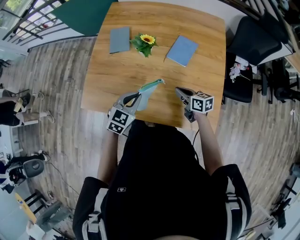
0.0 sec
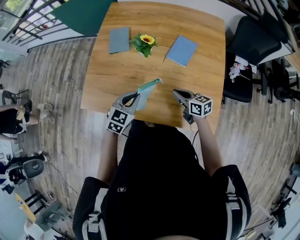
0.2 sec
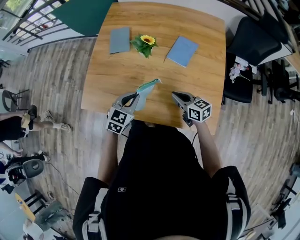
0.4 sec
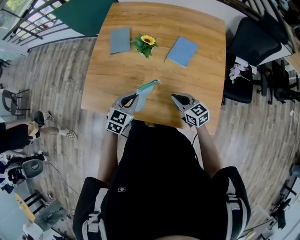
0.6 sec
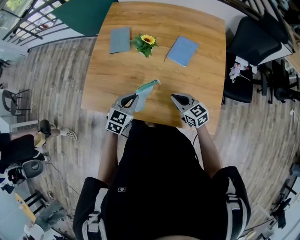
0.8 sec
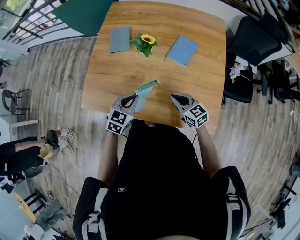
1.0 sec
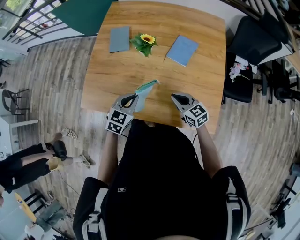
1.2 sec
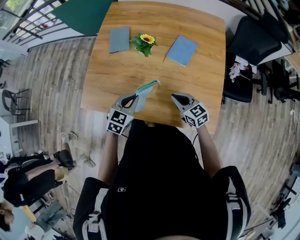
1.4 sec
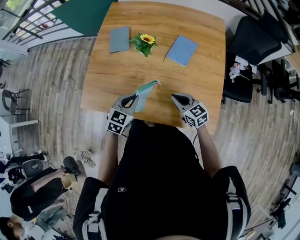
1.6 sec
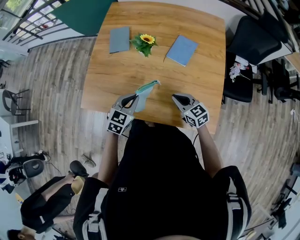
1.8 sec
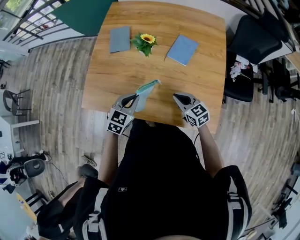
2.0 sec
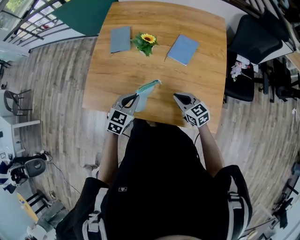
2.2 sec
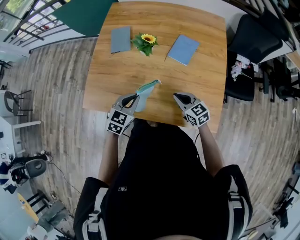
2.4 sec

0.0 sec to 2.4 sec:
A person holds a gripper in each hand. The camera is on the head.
0.0 sec to 1.2 sec: The right gripper changes place by about 5 cm, and changes its angle by approximately 30 degrees.
1.2 sec to 2.4 sec: Neither gripper changes place.

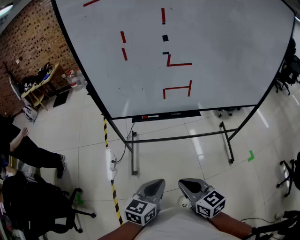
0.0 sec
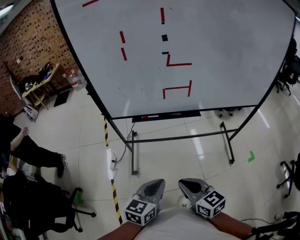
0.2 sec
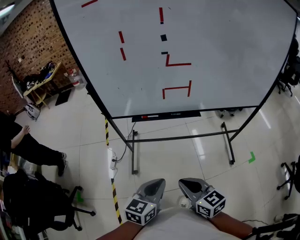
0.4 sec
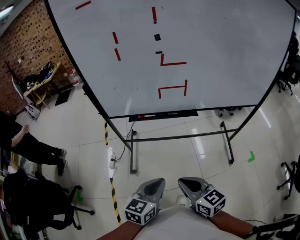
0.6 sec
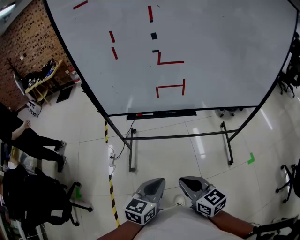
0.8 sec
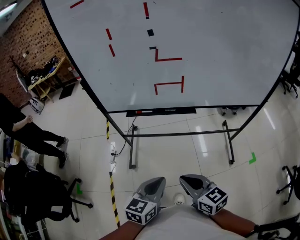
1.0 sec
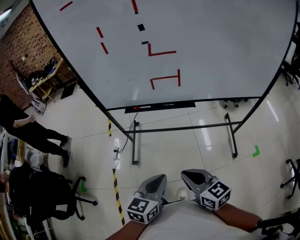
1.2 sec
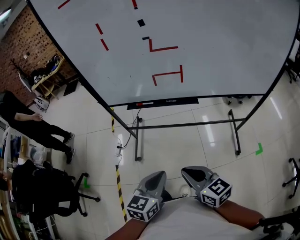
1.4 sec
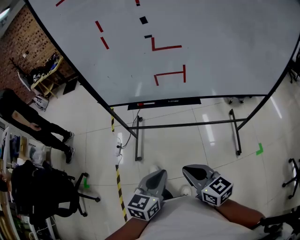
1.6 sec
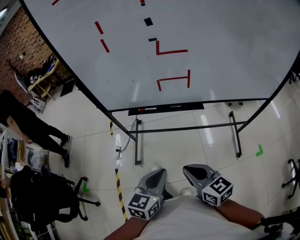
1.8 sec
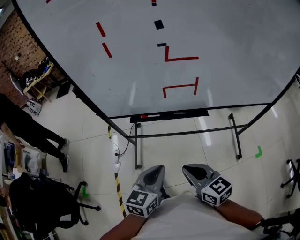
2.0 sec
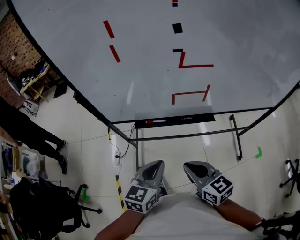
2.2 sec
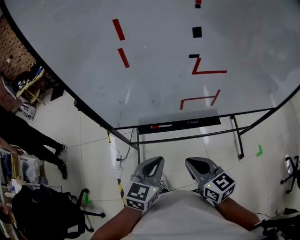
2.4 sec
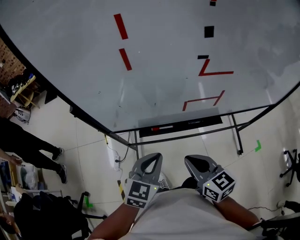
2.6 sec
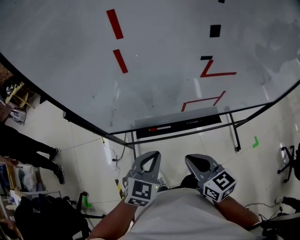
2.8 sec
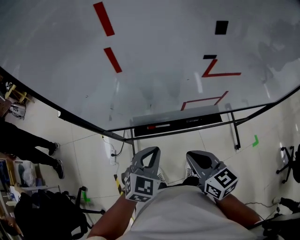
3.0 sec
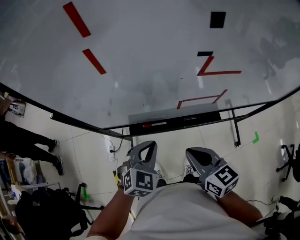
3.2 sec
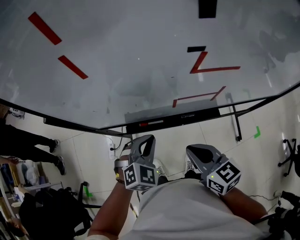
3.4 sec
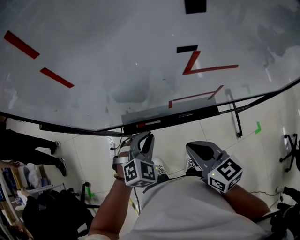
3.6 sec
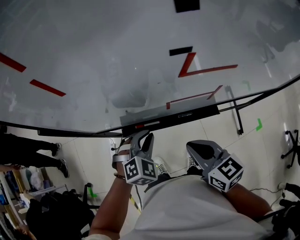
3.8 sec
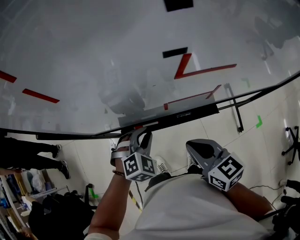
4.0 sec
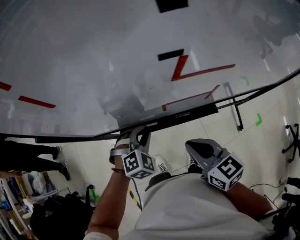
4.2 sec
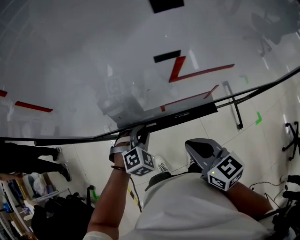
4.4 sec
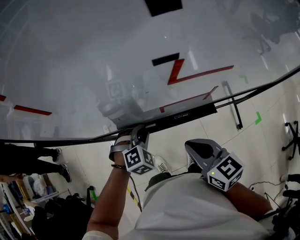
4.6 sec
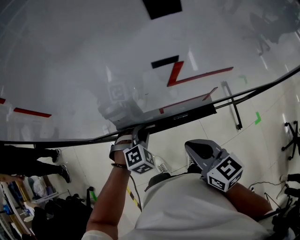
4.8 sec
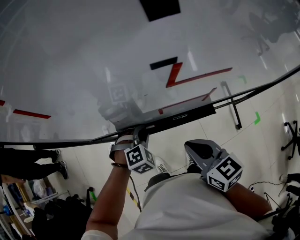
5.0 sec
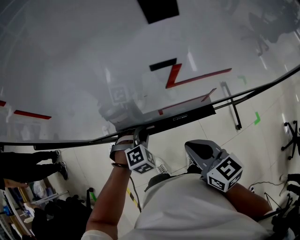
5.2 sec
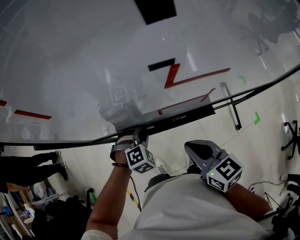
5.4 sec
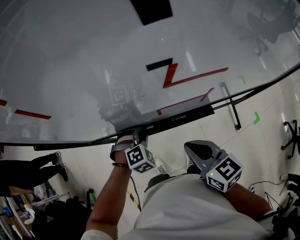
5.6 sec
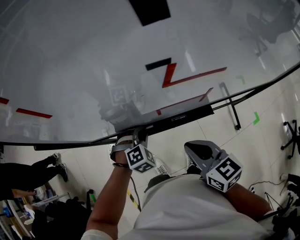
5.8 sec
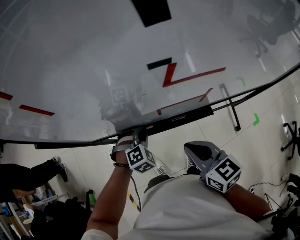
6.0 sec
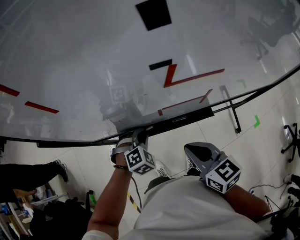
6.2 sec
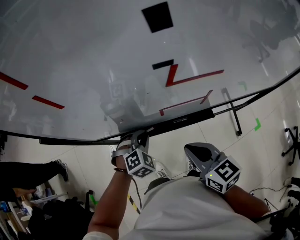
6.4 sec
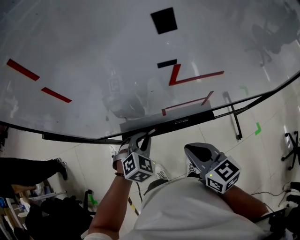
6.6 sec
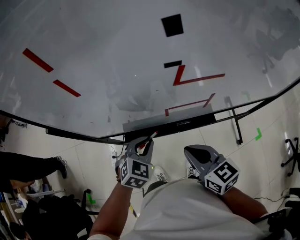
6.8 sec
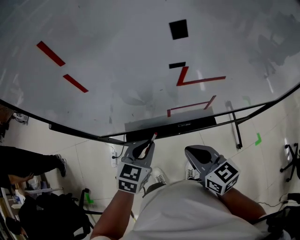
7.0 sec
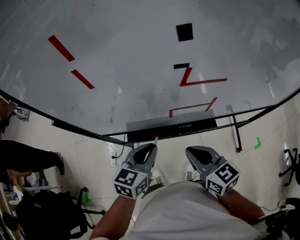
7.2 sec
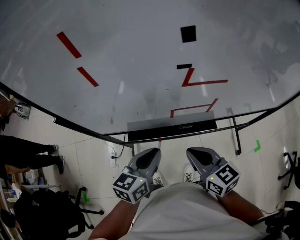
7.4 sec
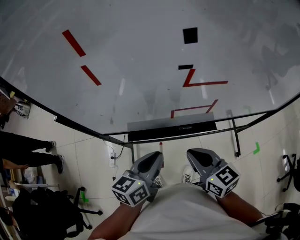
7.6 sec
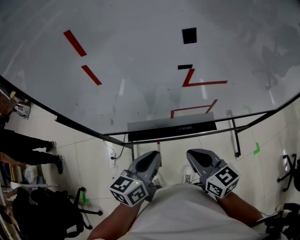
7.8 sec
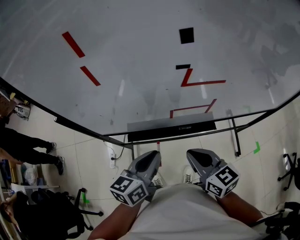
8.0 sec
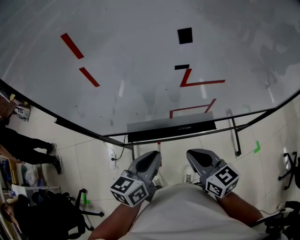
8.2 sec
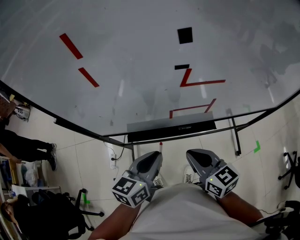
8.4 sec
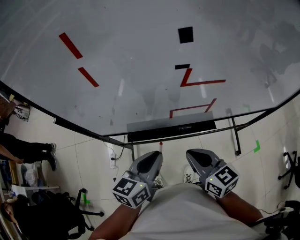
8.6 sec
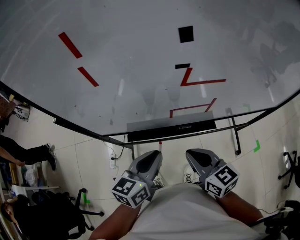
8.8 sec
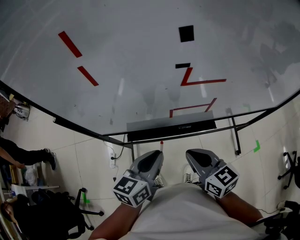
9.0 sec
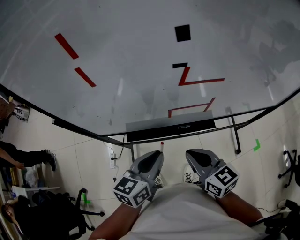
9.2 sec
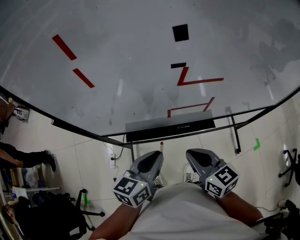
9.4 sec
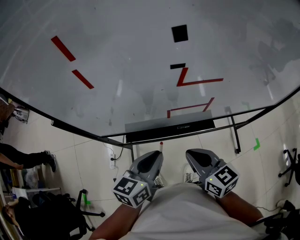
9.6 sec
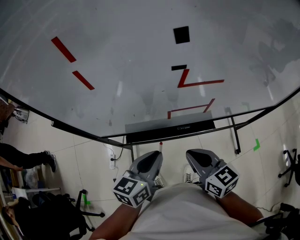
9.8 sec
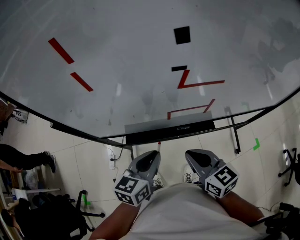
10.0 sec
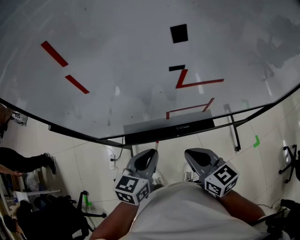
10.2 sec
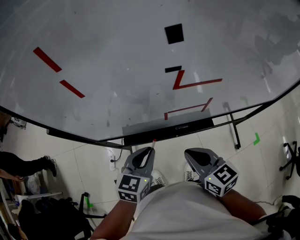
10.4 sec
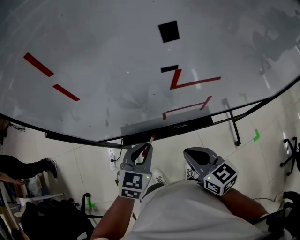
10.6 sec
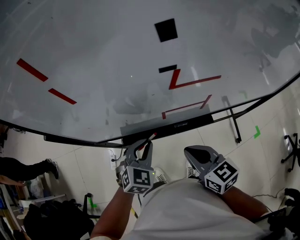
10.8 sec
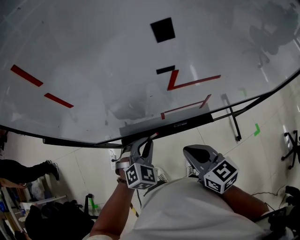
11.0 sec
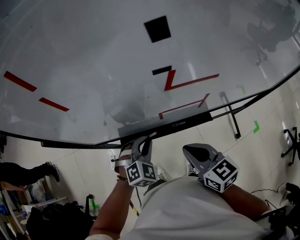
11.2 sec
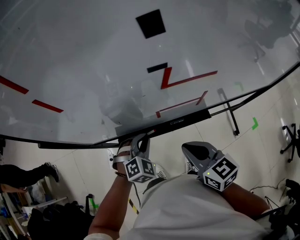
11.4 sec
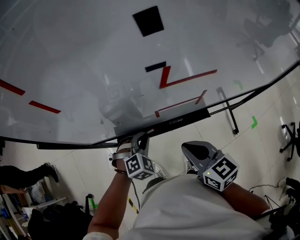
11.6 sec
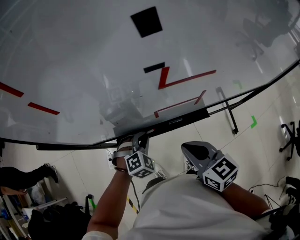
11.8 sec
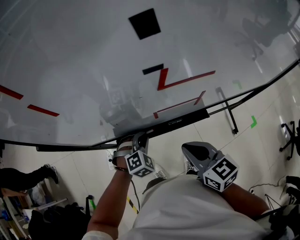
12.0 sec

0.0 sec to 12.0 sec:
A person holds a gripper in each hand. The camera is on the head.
0.0 sec to 1.6 sec: Both grippers travel together to the right, approximately 10 cm.
1.6 sec to 3.0 sec: Both grippers move forward, approximately 30 cm. The left gripper changes its angle by some 40 degrees.
3.0 sec to 4.4 sec: The left gripper goes roughly 15 cm downward and forward, and rotates roughly 40 degrees; the right gripper travels to the right by about 5 cm.
4.4 sec to 6.0 sec: There are only small adjustments of the grippers.
6.0 sec to 7.6 sec: The left gripper goes roughly 20 cm upward and backward, and rotates around the line of its fingers by approximately 80 degrees, counterclockwise from behind.
7.6 sec to 9.0 sec: There are only small adjustments of the grippers.
9.0 sec to 10.4 sec: The left gripper changes place by about 5 cm, and swivels approximately 20 degrees.
10.4 sec to 12.0 sec: The left gripper travels downward and forward by approximately 15 cm, and rolls clockwise, seen from behind, by some 50 degrees.

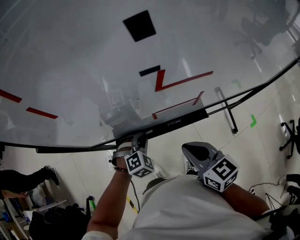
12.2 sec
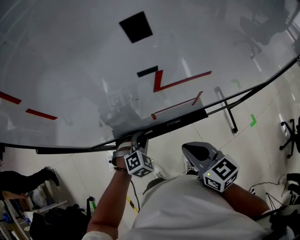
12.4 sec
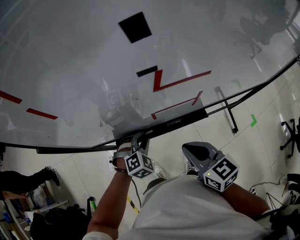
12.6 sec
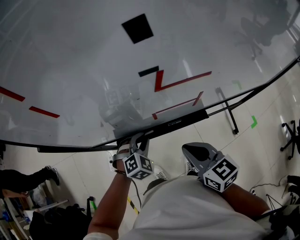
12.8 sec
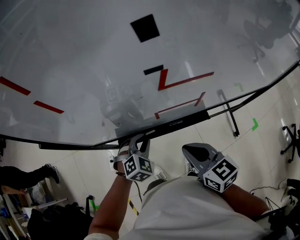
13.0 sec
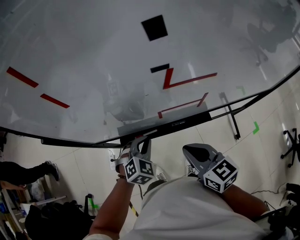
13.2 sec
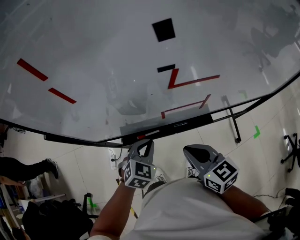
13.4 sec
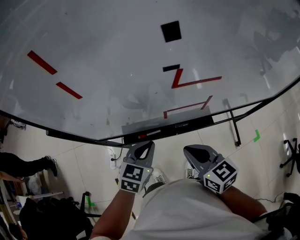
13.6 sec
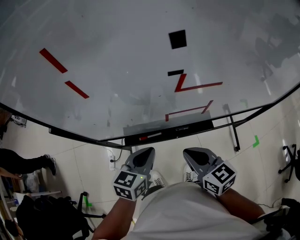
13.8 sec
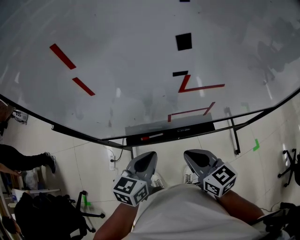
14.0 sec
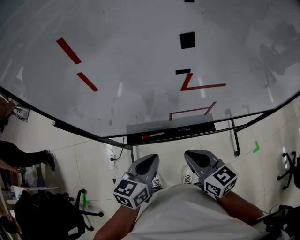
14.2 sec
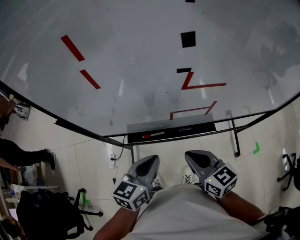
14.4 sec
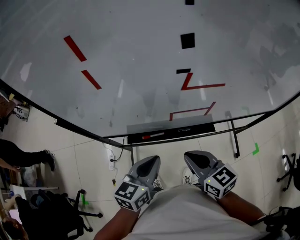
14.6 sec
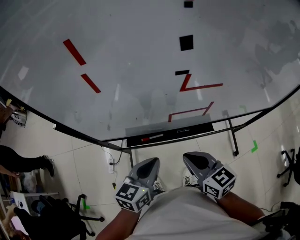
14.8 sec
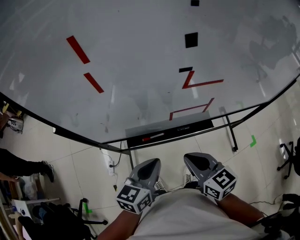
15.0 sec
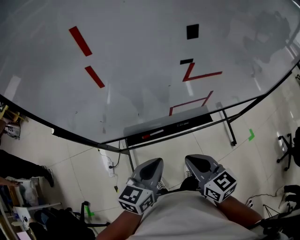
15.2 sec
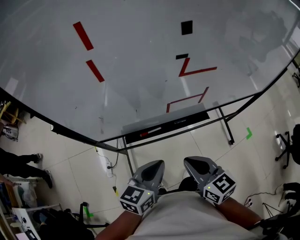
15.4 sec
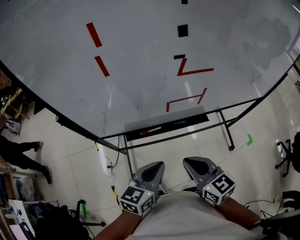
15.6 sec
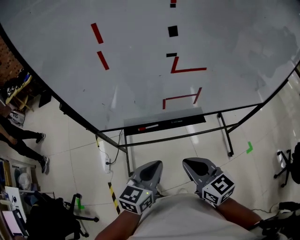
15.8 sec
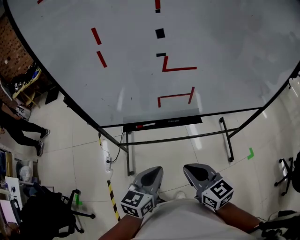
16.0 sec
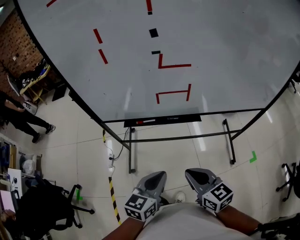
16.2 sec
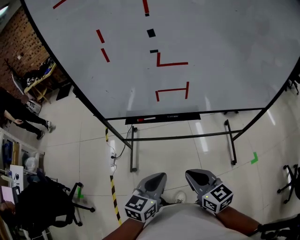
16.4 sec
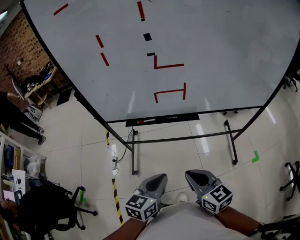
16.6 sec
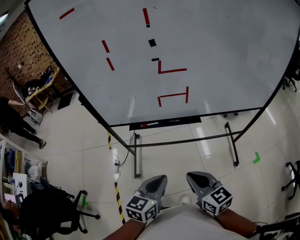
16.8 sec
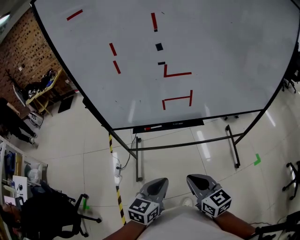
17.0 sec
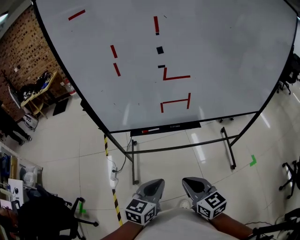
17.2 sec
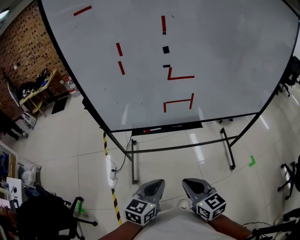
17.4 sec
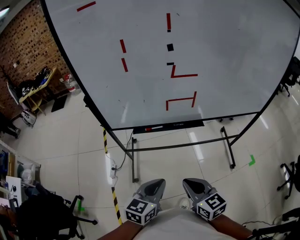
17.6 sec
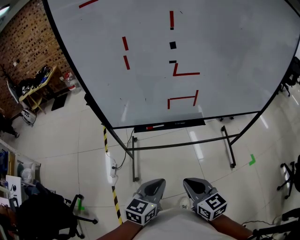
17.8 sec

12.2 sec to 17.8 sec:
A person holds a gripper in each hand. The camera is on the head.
12.2 sec to 13.6 sec: The left gripper moves upward, roughly 10 cm, and twists about 50 degrees counterclockwise, seen from behind.
13.6 sec to 15.0 sec: The left gripper heads backward and upward, covering about 10 cm, and swivels about 20 degrees.
15.0 sec to 16.4 sec: Both grippers move backward and to the right, roughly 20 cm.
16.4 sec to 17.8 sec: The grippers both shift to the left by about 10 cm.

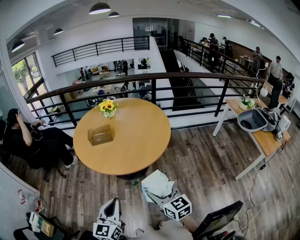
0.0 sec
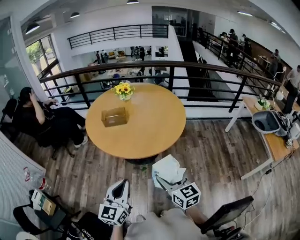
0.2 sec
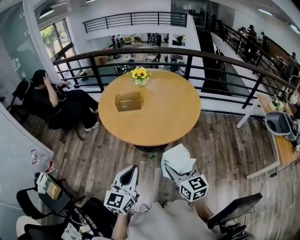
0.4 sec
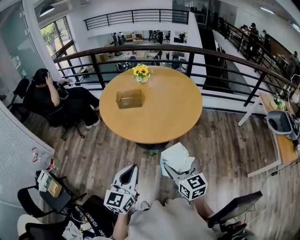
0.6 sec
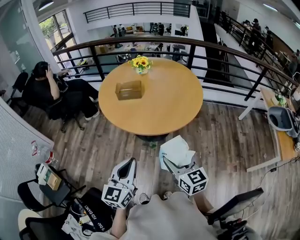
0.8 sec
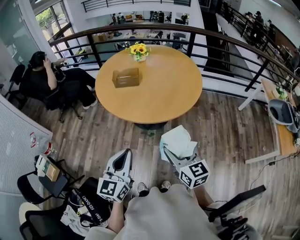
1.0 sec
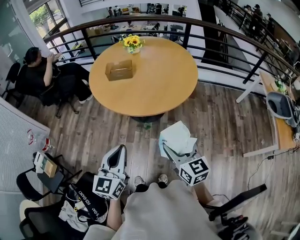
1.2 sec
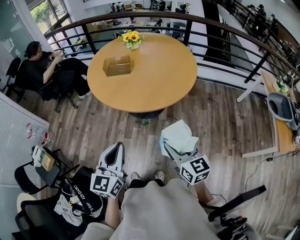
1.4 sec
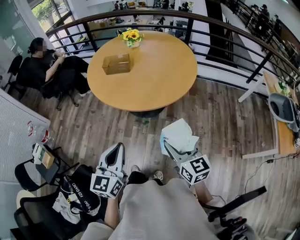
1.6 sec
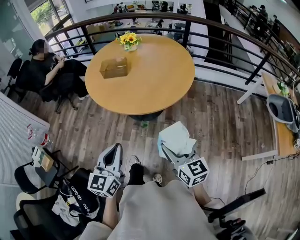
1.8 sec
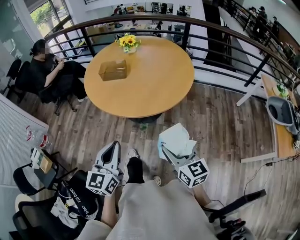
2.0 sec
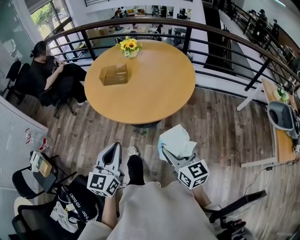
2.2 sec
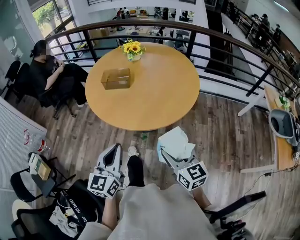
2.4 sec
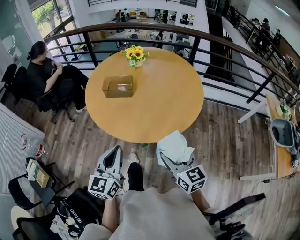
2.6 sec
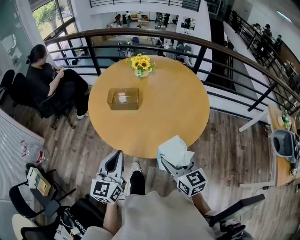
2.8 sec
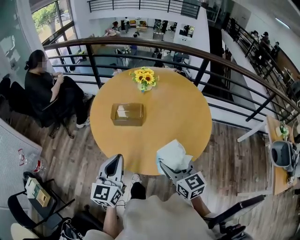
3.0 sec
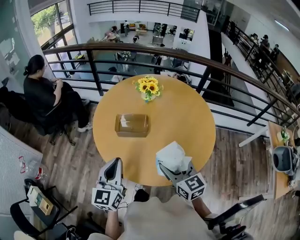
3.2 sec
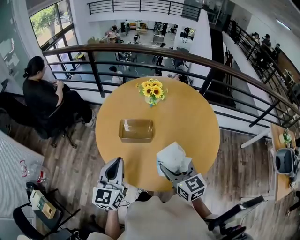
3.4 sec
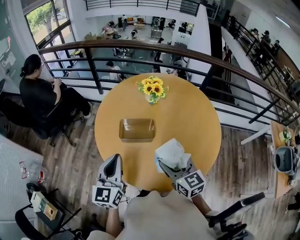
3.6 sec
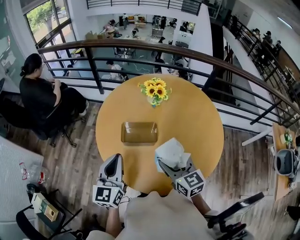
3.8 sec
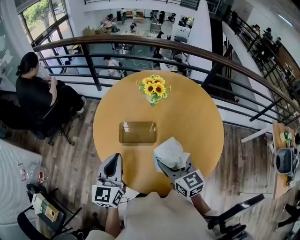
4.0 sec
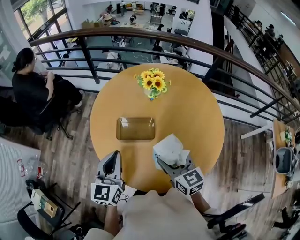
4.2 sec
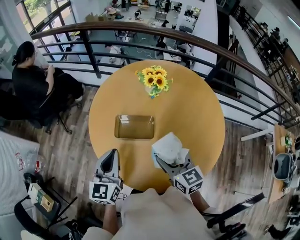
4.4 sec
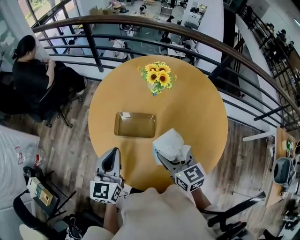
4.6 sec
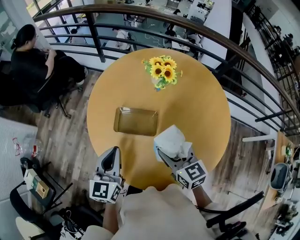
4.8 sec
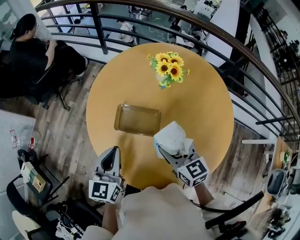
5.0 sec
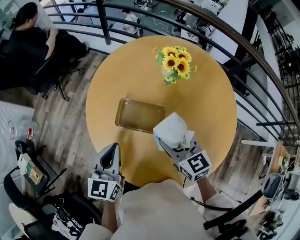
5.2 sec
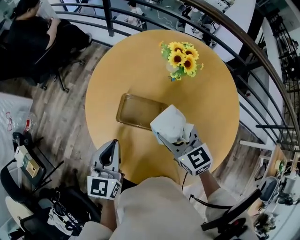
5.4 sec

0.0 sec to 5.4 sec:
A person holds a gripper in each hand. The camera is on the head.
0.0 sec to 1.4 sec: The right gripper heads to the right, covering approximately 5 cm.
1.4 sec to 2.8 sec: The two grippers go approximately 20 cm forward.
2.8 sec to 4.0 sec: Both grippers travel together forward, approximately 20 cm.
4.0 sec to 5.4 sec: The left gripper heads downward, covering approximately 5 cm; the right gripper is displaced forward by about 10 cm, and changes its angle by approximately 30 degrees.
